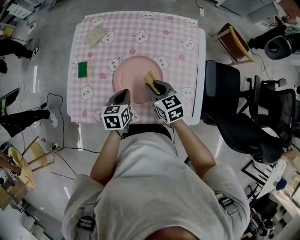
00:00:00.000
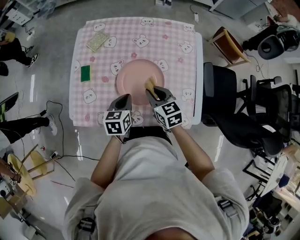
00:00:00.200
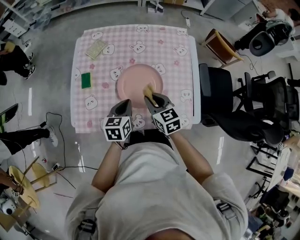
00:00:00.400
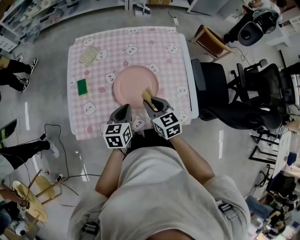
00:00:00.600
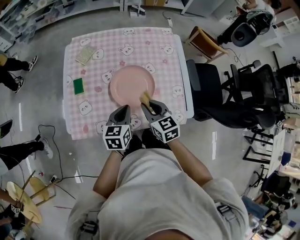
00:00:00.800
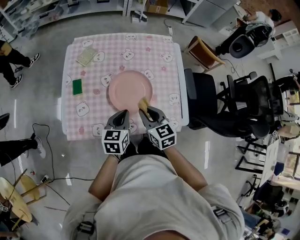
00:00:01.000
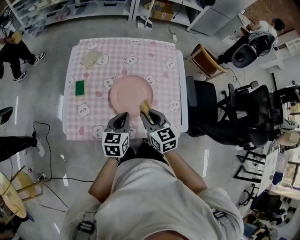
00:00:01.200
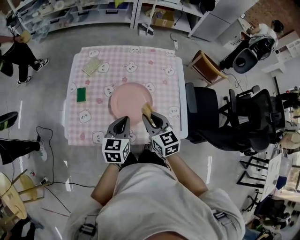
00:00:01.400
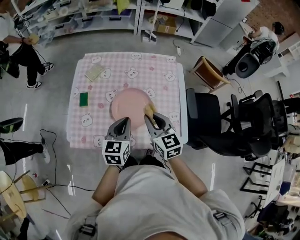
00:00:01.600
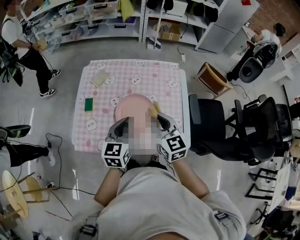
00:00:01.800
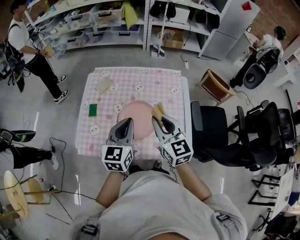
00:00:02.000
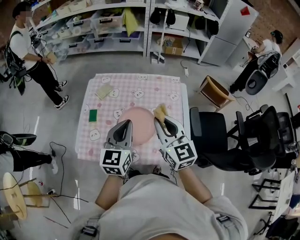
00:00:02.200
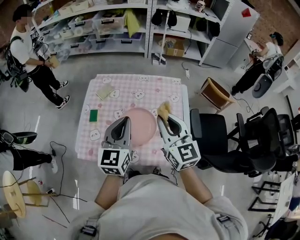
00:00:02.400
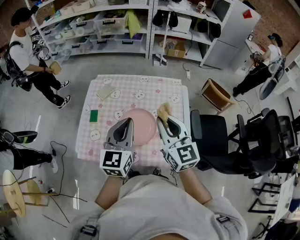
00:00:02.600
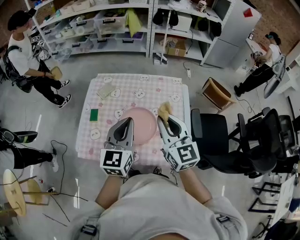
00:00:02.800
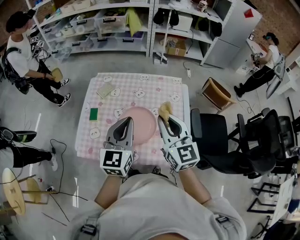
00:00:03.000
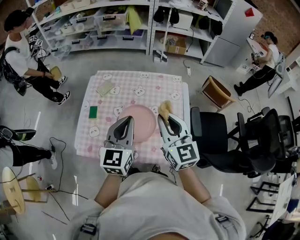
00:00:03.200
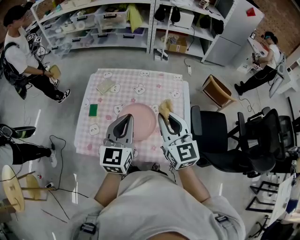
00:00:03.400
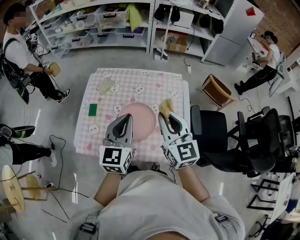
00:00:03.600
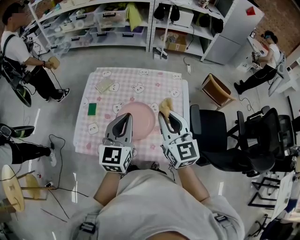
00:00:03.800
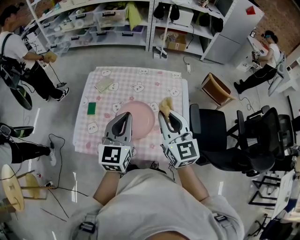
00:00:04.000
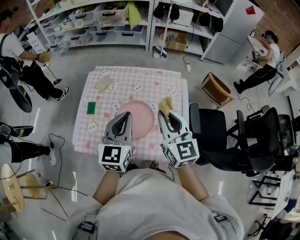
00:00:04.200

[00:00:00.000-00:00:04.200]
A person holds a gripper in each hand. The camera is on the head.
00:00:00.000 to 00:00:01.400: Both grippers travel together upward and backward, some 10 cm. The left gripper rotates approximately 20 degrees.
00:00:01.400 to 00:00:02.800: The two grippers go approximately 20 cm upward. The right gripper rotates roughly 20 degrees. The left gripper changes its angle by roughly 20 degrees.
00:00:02.800 to 00:00:04.200: The grippers stay close to where they were, moving slightly.

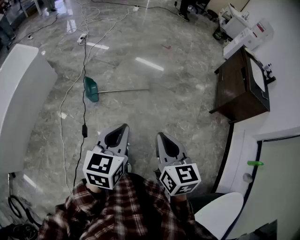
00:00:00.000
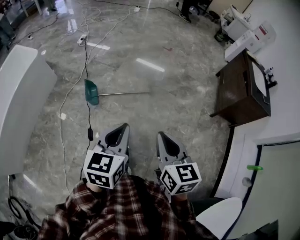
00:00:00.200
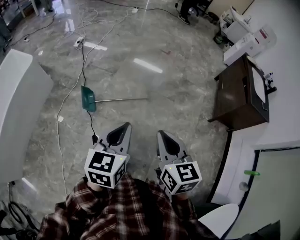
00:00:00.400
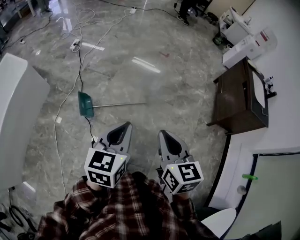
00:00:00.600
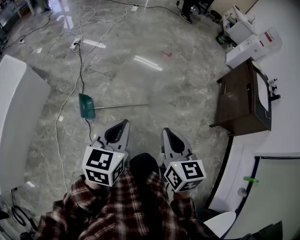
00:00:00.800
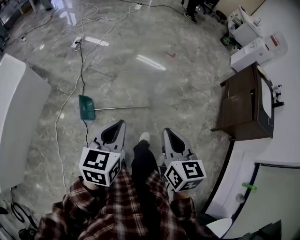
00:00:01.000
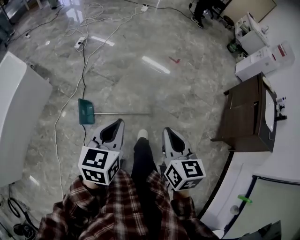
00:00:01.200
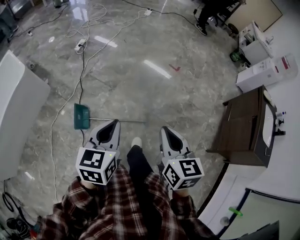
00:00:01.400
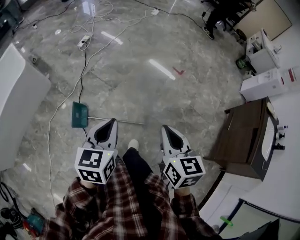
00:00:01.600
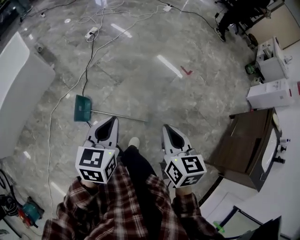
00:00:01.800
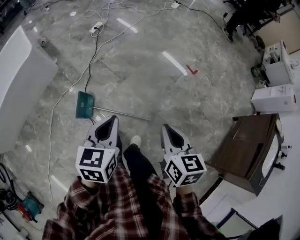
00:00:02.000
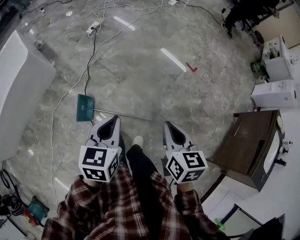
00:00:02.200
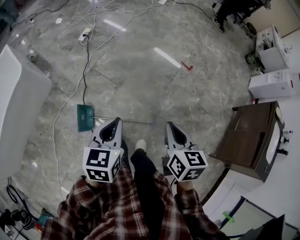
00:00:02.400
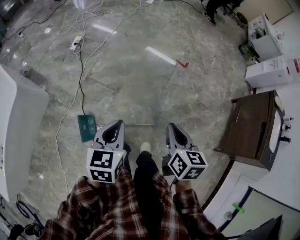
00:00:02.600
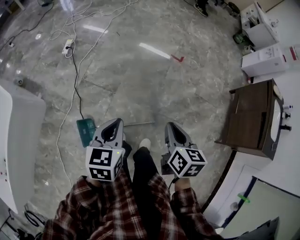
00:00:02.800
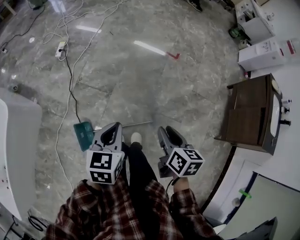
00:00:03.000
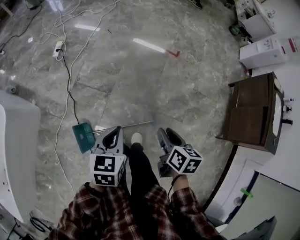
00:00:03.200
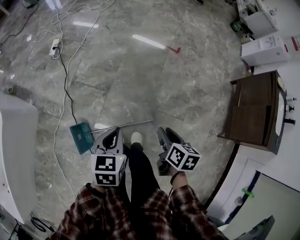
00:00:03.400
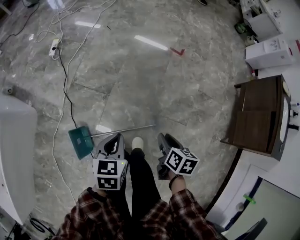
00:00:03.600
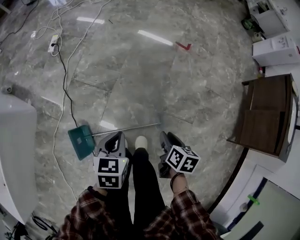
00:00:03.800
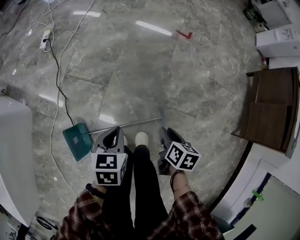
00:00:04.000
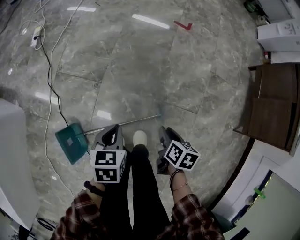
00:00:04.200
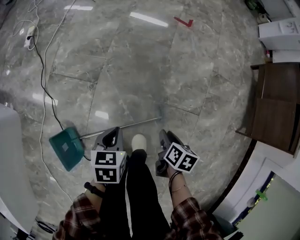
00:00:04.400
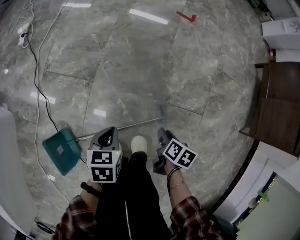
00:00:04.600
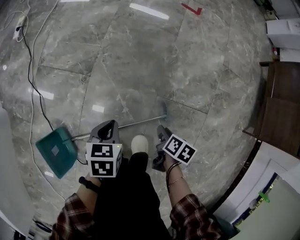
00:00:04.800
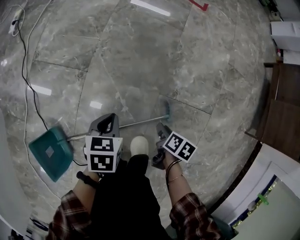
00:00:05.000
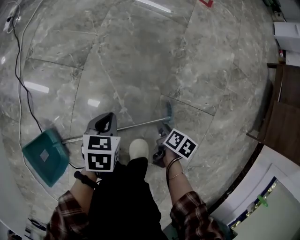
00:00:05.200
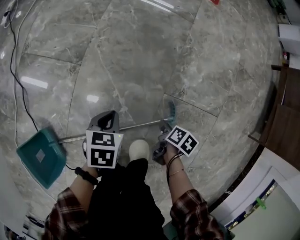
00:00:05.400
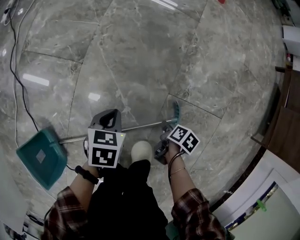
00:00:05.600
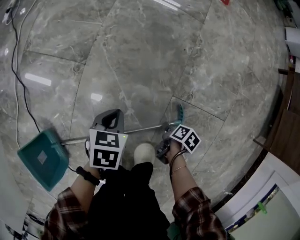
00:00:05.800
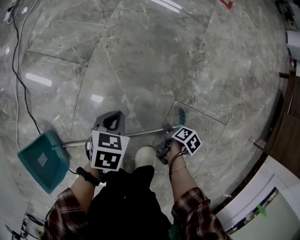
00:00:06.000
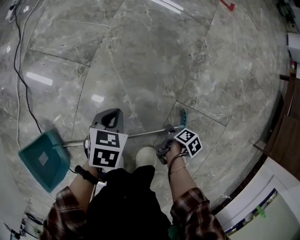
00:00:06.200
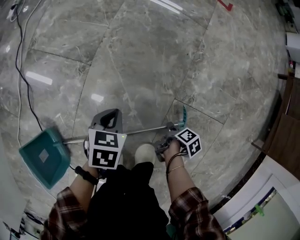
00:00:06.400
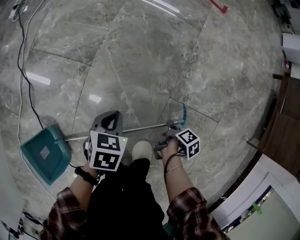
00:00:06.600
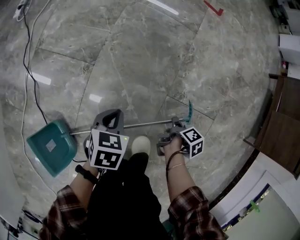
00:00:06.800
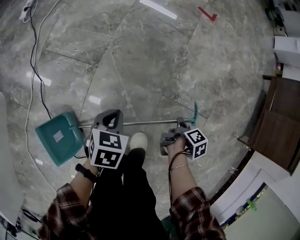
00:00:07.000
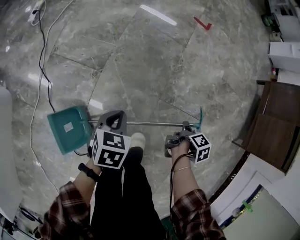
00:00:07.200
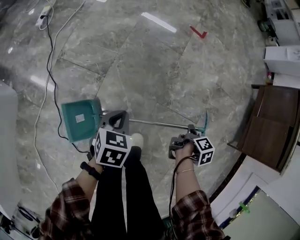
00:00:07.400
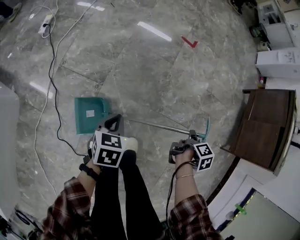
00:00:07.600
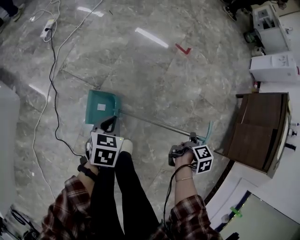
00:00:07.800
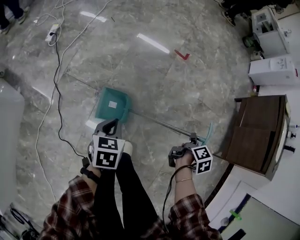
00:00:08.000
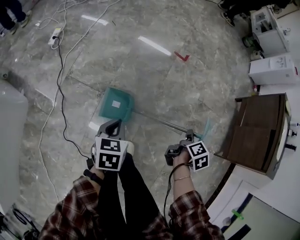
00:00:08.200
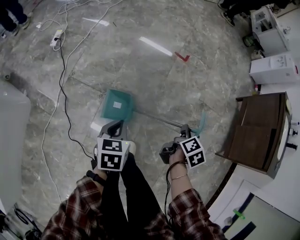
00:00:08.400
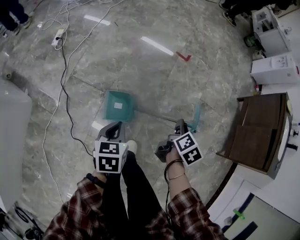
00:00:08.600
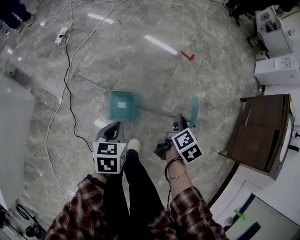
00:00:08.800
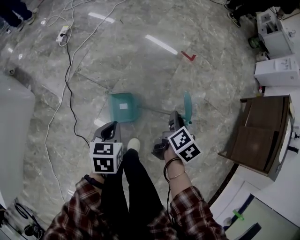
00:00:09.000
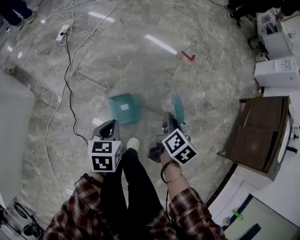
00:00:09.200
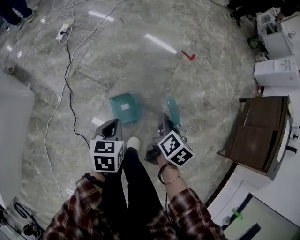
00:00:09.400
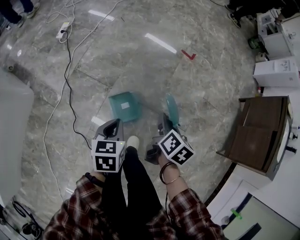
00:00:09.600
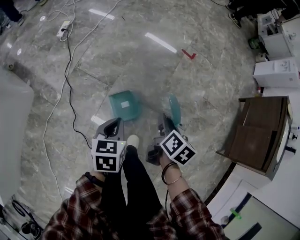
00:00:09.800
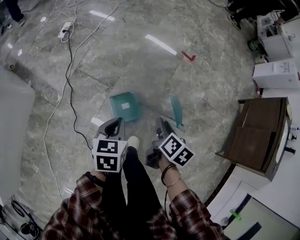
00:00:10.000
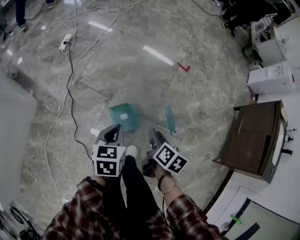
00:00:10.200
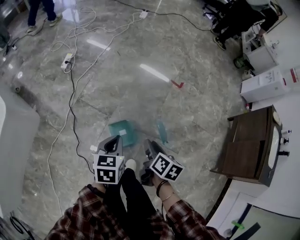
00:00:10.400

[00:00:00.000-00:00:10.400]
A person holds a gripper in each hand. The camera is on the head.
00:00:00.000 to 00:00:01.400: The pair of grippers is taken forward, approximately 50 cm.
00:00:01.400 to 00:00:03.000: Both grippers move forward and downward, approximately 25 cm. The right gripper changes its angle by roughly 30 degrees, and opens its fingers.
00:00:03.000 to 00:00:04.400: The grippers both shift downward by about 40 cm. The left gripper rotates about 20 degrees; the right gripper changes its angle by about 30 degrees.
00:00:04.400 to 00:00:06.000: The two grippers go roughly 35 cm downward. The right gripper swivels roughly 30 degrees.
00:00:06.000 to 00:00:07.400: Both grippers travel together upward, approximately 35 cm. The right gripper changes its angle by some 40 degrees.
00:00:07.400 to 00:00:09.000: The right gripper goes some 30 cm upward and to the left, and rotates some 40 degrees; the left gripper moves upward, roughly 20 cm, and rotates roughly 20 degrees.
00:00:09.000 to 00:00:10.400: The right gripper moves to the left, upward and backward, roughly 15 cm, and turns by approximately 20 degrees. The left gripper heads upward, covering approximately 10 cm.

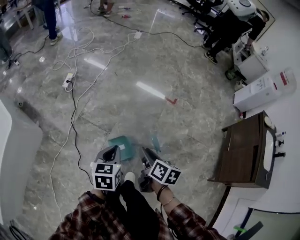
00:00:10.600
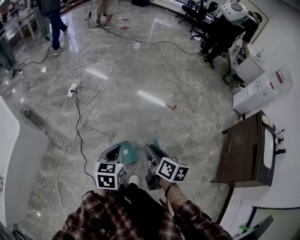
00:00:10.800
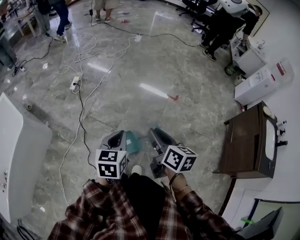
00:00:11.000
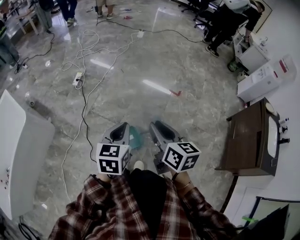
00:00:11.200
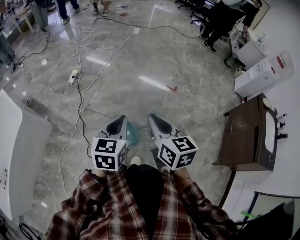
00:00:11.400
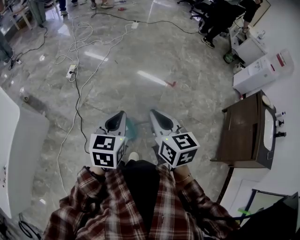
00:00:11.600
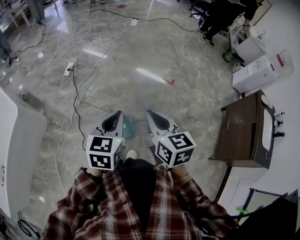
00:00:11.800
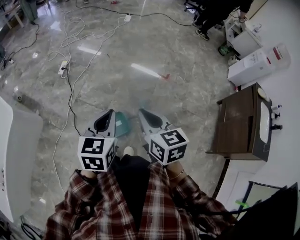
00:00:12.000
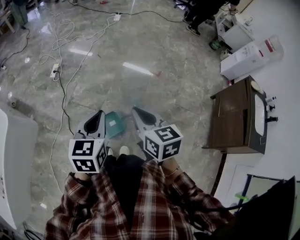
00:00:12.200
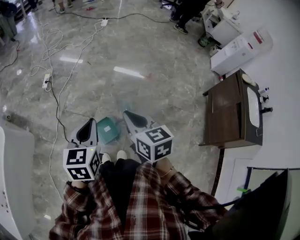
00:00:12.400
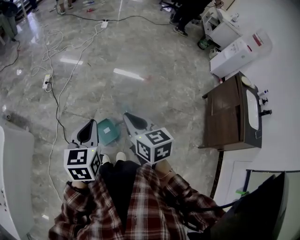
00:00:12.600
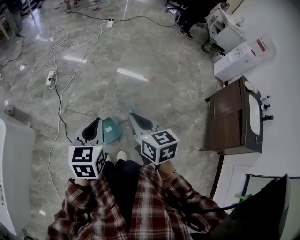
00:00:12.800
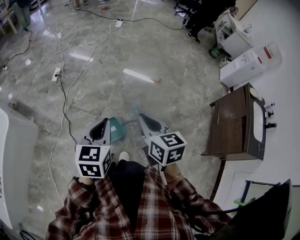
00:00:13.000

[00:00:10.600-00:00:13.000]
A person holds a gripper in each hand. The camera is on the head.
00:00:10.600 to 00:00:11.800: The two grippers go approximately 20 cm upward. The right gripper turns by roughly 40 degrees, and closes.
00:00:11.800 to 00:00:13.000: The grippers move only a little.

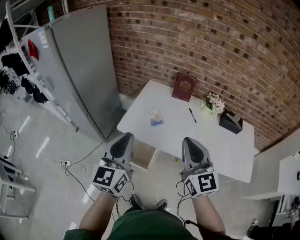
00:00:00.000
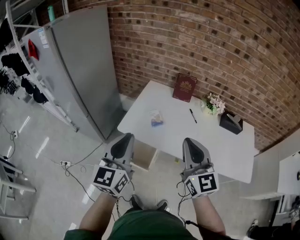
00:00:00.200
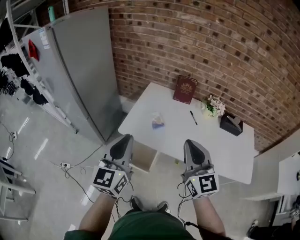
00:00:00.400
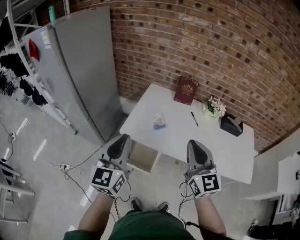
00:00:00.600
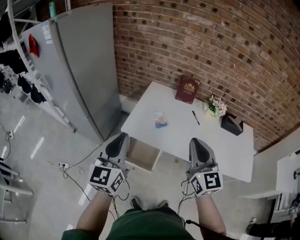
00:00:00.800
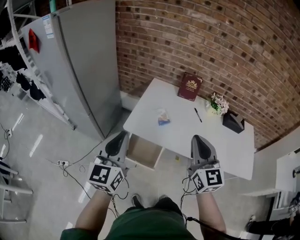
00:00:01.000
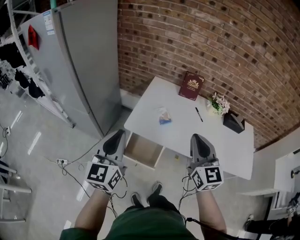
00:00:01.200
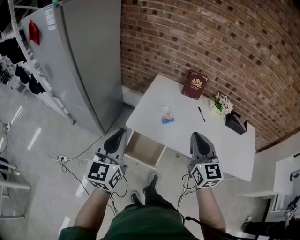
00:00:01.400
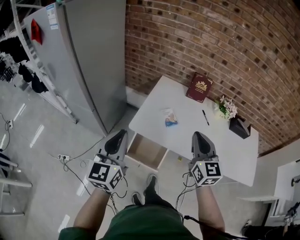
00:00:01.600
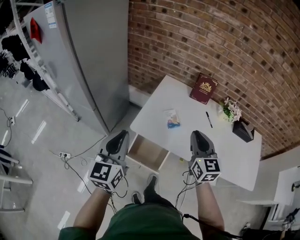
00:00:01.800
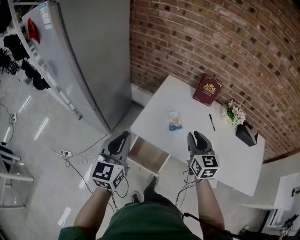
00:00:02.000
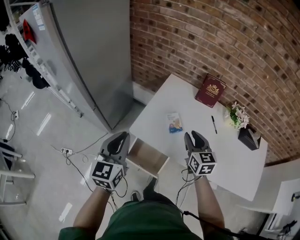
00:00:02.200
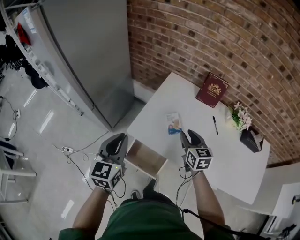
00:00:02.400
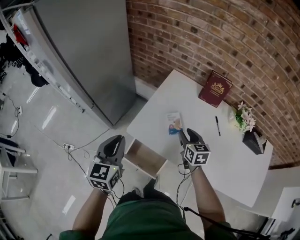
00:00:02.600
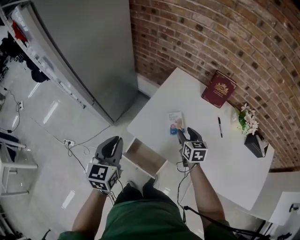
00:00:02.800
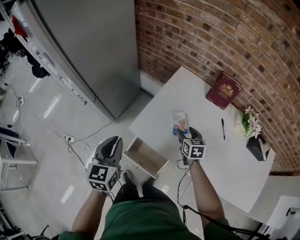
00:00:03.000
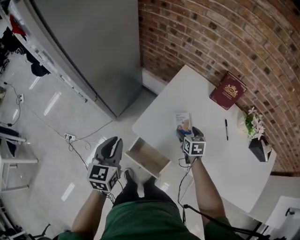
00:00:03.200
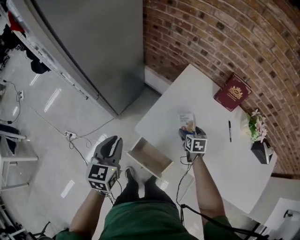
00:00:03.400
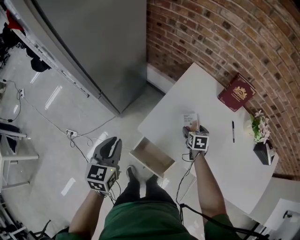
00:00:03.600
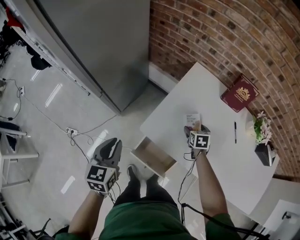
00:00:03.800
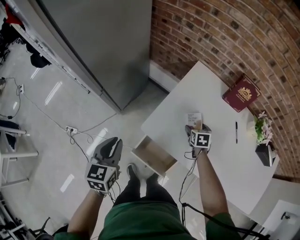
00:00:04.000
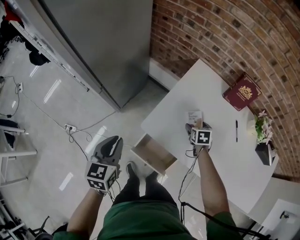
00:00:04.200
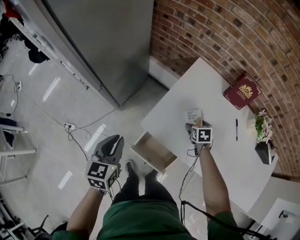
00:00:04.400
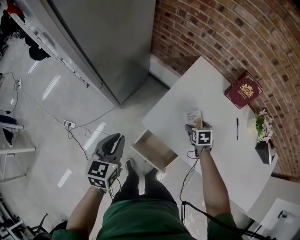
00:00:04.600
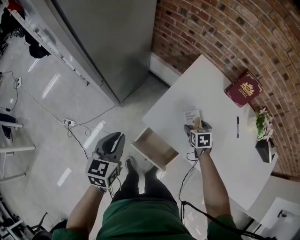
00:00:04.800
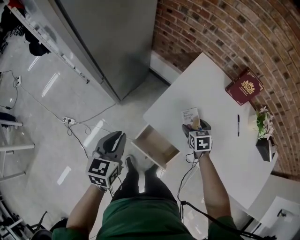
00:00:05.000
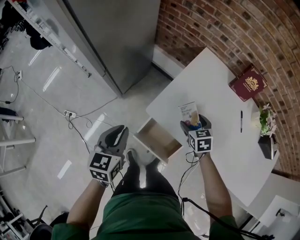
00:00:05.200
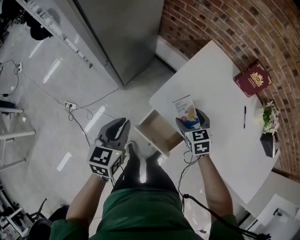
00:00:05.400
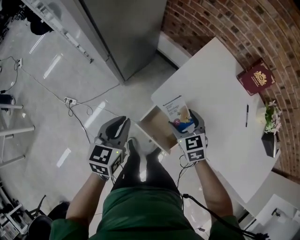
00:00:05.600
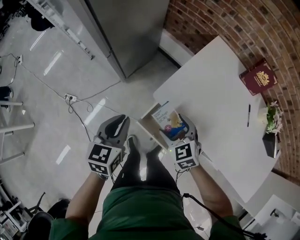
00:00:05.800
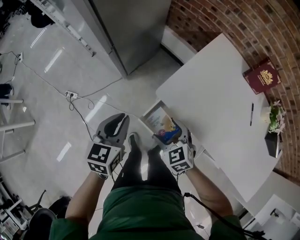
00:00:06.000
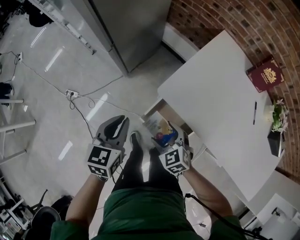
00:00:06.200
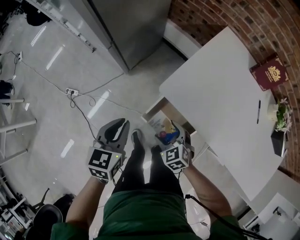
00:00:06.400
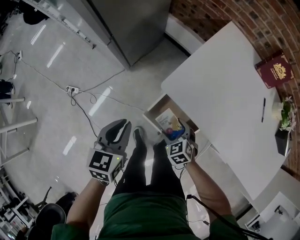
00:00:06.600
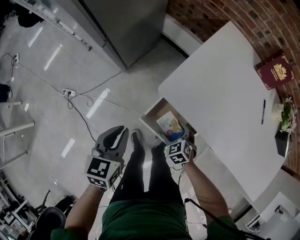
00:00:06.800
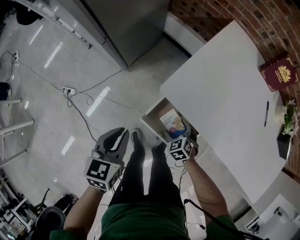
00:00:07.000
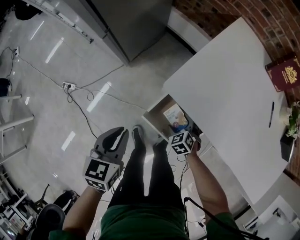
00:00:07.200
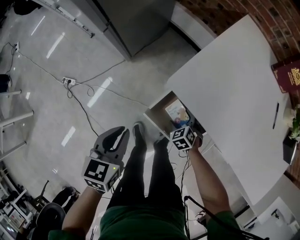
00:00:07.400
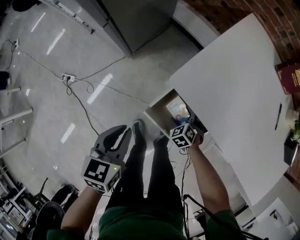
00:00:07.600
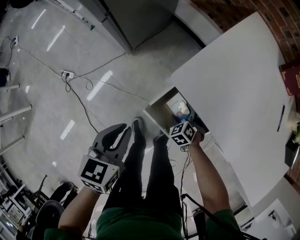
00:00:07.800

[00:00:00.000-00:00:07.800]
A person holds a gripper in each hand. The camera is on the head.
00:00:00.000 to 00:00:01.600: The right gripper moves forward, downward and to the left, roughly 15 cm. The left gripper is displaced to the left by some 15 cm.
00:00:01.600 to 00:00:03.200: The left gripper shifts some 20 cm downward and forward, and swivels about 30 degrees. Meanwhile the right gripper heads downward and forward, covering about 40 cm, points its fingers some 40 degrees further downward, and opens.
00:00:03.200 to 00:00:04.600: The left gripper is displaced to the left by roughly 5 cm; the right gripper is displaced downward by approximately 5 cm.
00:00:04.600 to 00:00:06.200: The left gripper is displaced downward by some 5 cm. Meanwhile the right gripper shifts about 30 cm to the left and backward, and turns by roughly 40 degrees.
00:00:06.200 to 00:00:07.800: The right gripper goes approximately 25 cm downward, and swivels some 20 degrees. Meanwhile the left gripper is displaced downward by about 10 cm.
